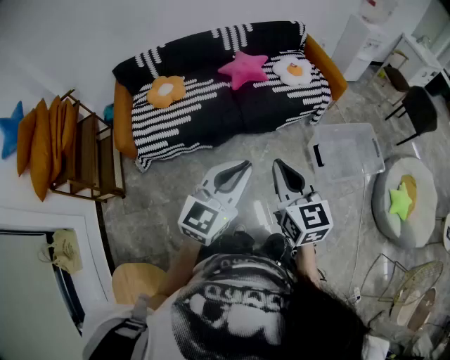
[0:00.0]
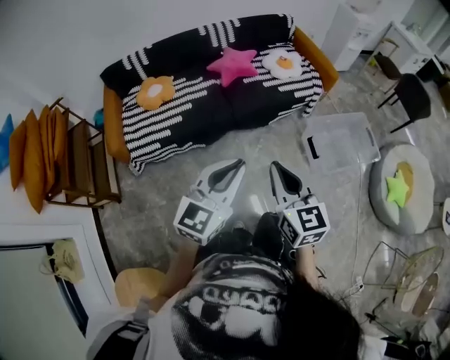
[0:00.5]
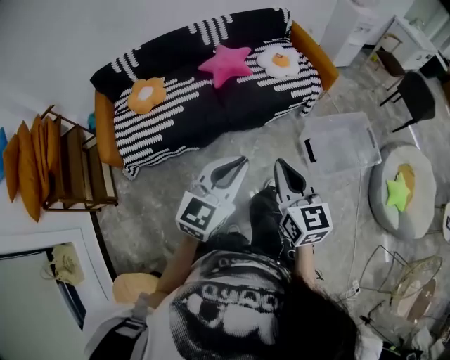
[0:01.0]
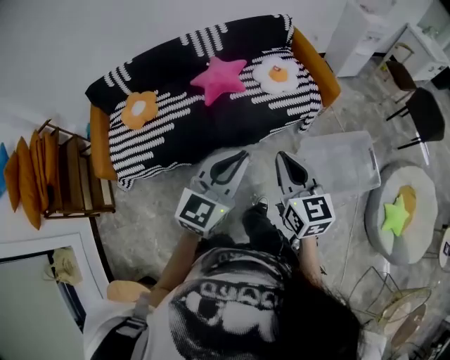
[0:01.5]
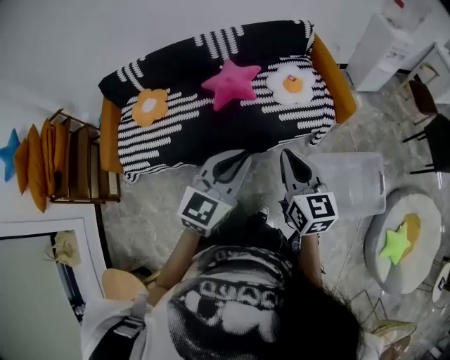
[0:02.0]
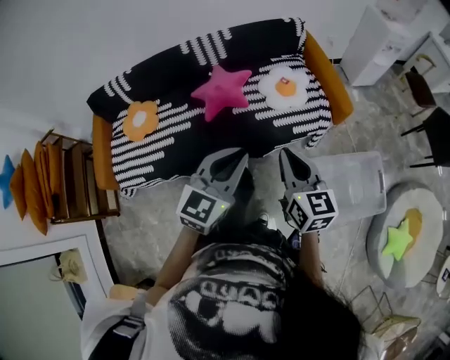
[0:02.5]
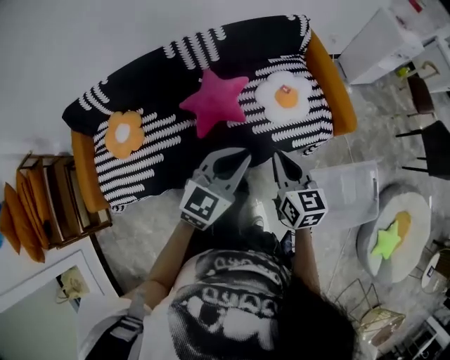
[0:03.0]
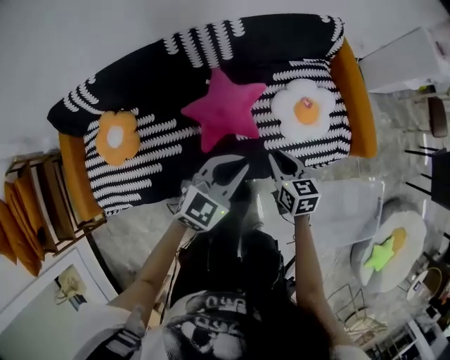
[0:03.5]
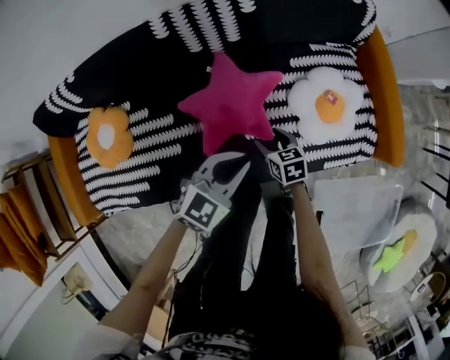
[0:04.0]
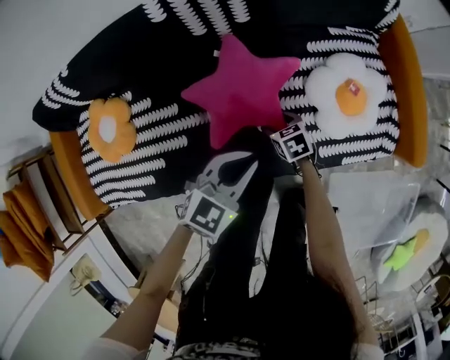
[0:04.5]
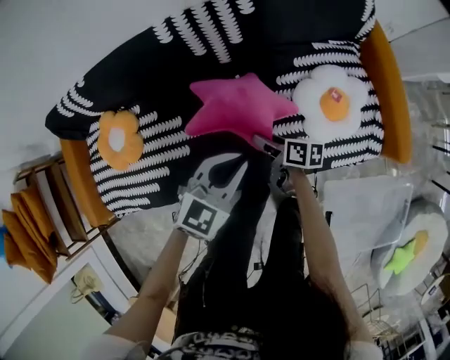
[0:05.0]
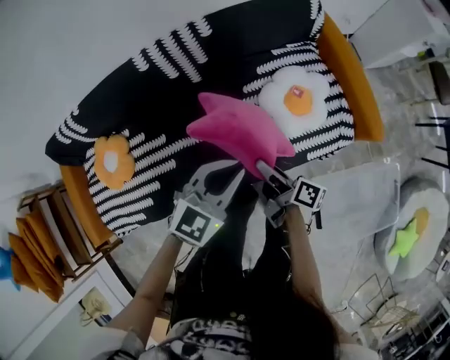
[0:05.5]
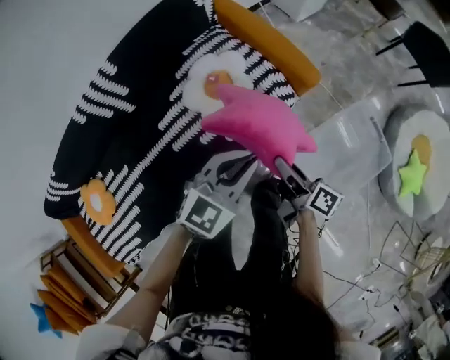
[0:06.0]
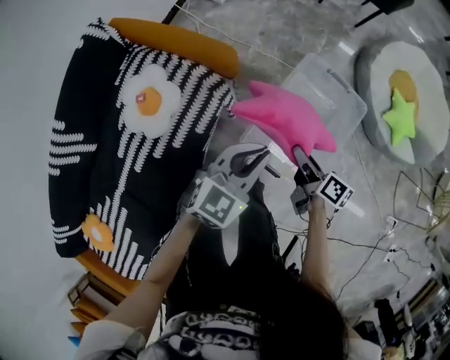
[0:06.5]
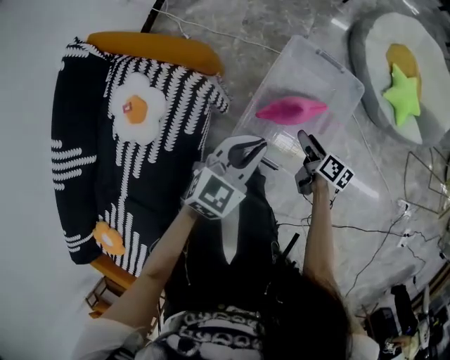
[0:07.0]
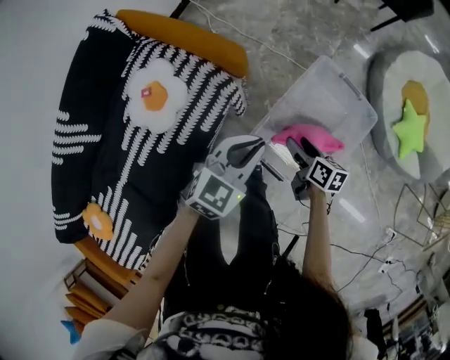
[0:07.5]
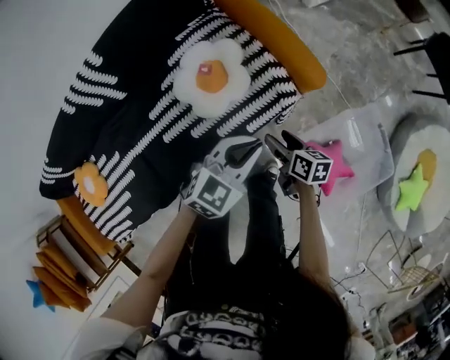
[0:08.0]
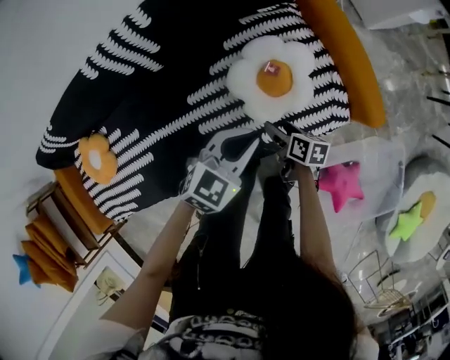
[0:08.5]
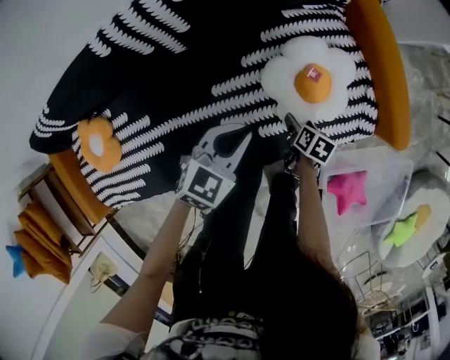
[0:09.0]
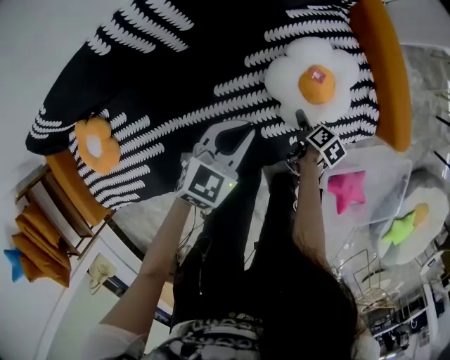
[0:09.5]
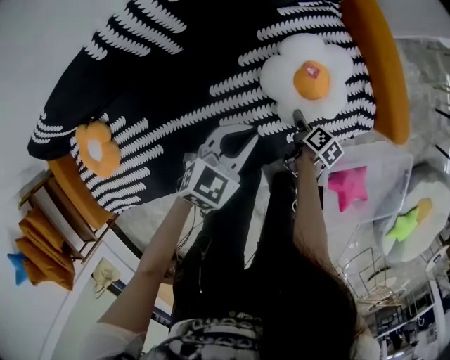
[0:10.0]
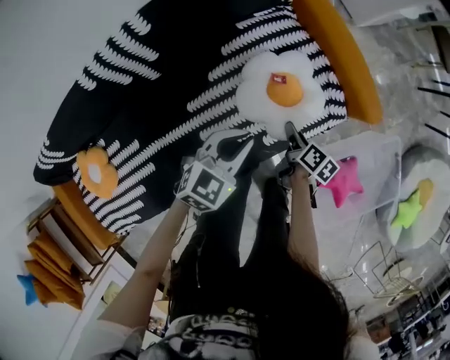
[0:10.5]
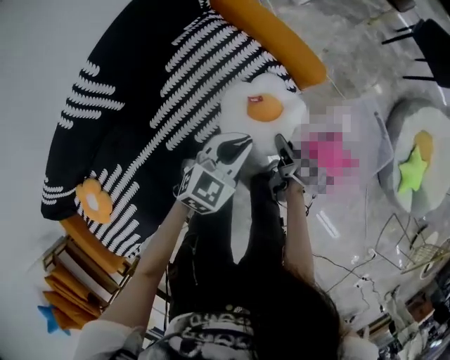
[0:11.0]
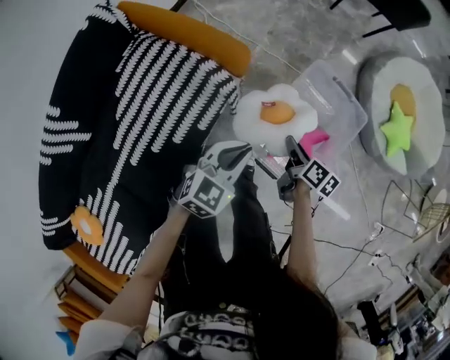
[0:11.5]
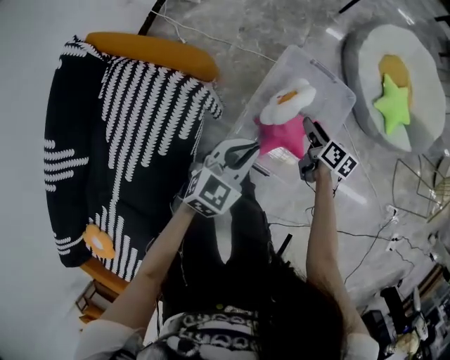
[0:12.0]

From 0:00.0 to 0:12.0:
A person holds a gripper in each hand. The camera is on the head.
From 0:00.0 to 0:02.0: Both grippers travel together forward and to the right, some 40 cm.
From 0:02.0 to 0:04.0: Both grippers are carried forward, roughly 50 cm. Both grippers move downward, some 40 cm. The right gripper angles its fingers downward, by roughly 40 degrees, and opens its fingers, while the left gripper swivels about 30 degrees.
From 0:04.0 to 0:06.0: The left gripper shifts by about 40 cm, and swivels approximately 30 degrees. The right gripper moves roughly 50 cm, and angles its fingers upward, by about 40 degrees.
From 0:06.0 to 0:08.0: Both grippers travel together downward, roughly 15 cm. The right gripper rotates some 30 degrees.
From 0:08.0 to 0:10.0: The left gripper heads to the left, covering roughly 30 cm; the right gripper travels to the left and downward by some 25 cm, and turns by some 30 degrees.
From 0:10.0 to 0:12.0: The pair of grippers is taken roughly 60 cm. The right gripper changes its angle by about 40 degrees; the left gripper turns by approximately 40 degrees.

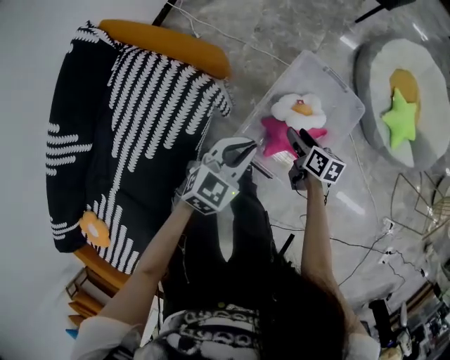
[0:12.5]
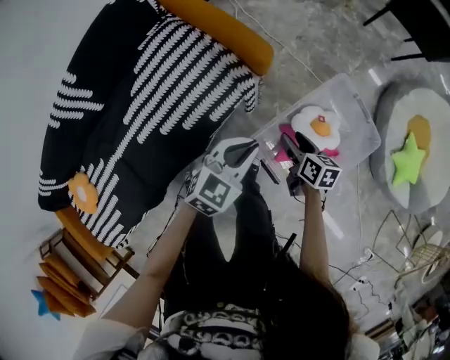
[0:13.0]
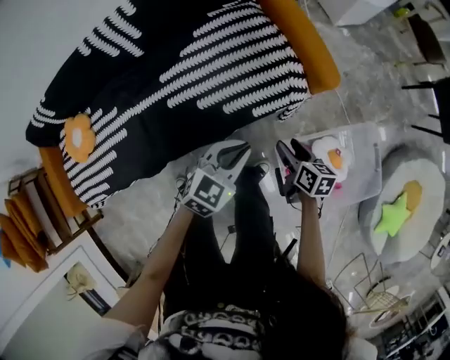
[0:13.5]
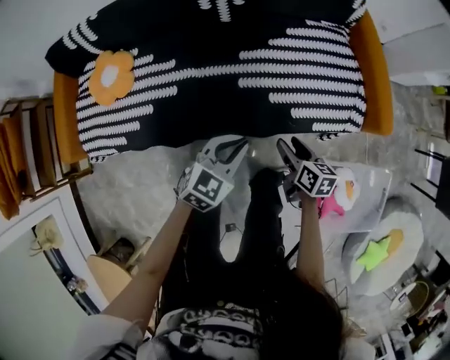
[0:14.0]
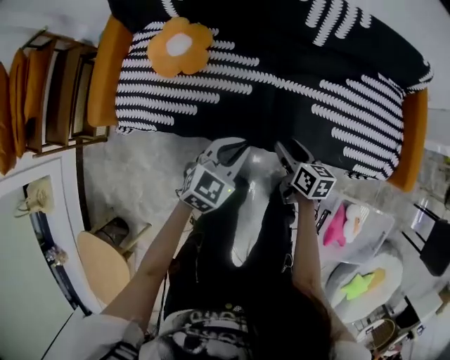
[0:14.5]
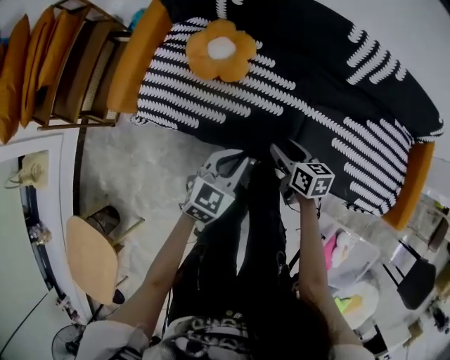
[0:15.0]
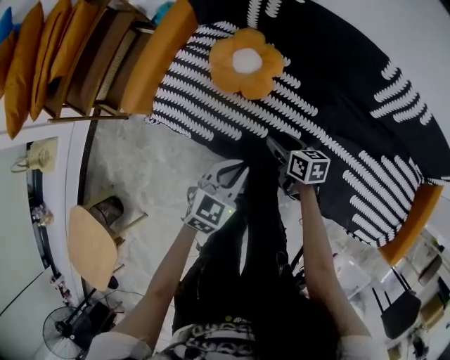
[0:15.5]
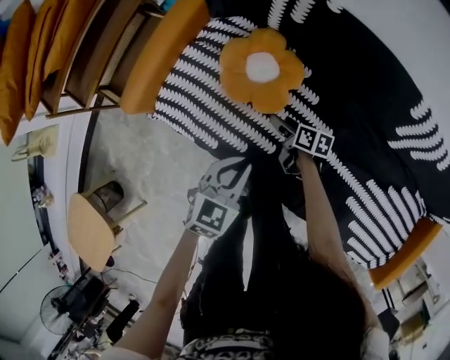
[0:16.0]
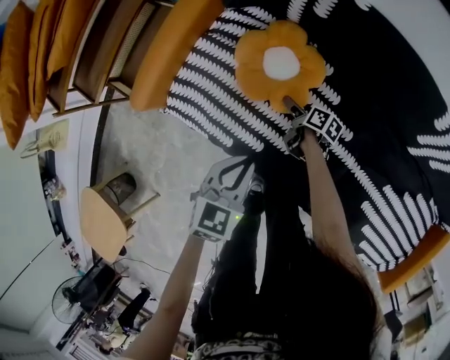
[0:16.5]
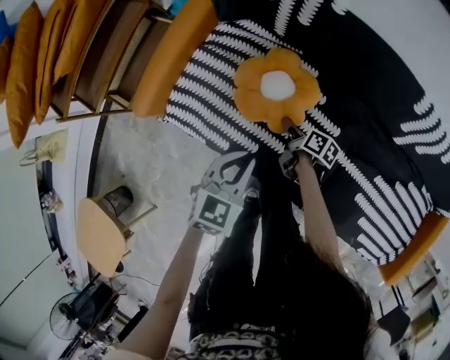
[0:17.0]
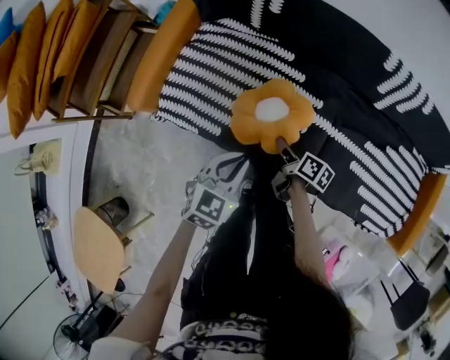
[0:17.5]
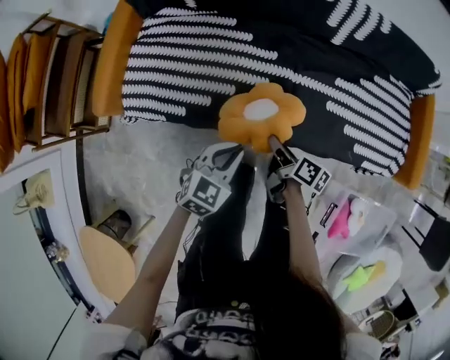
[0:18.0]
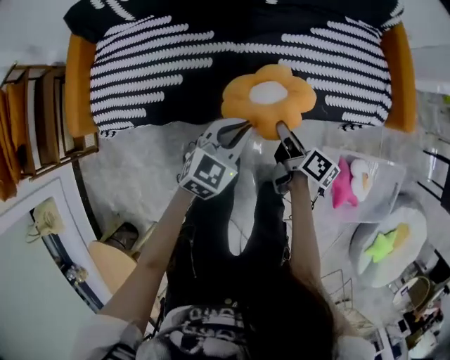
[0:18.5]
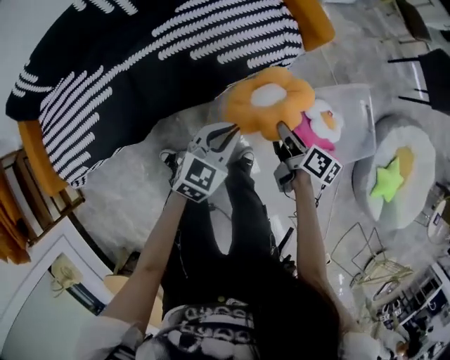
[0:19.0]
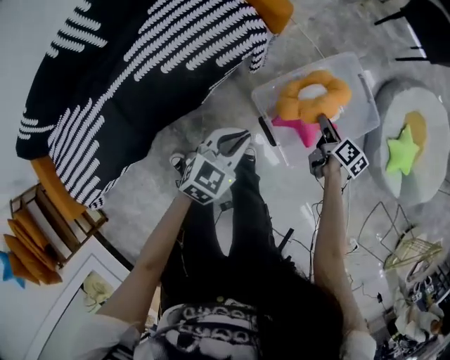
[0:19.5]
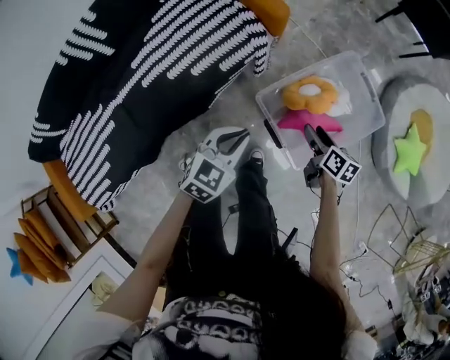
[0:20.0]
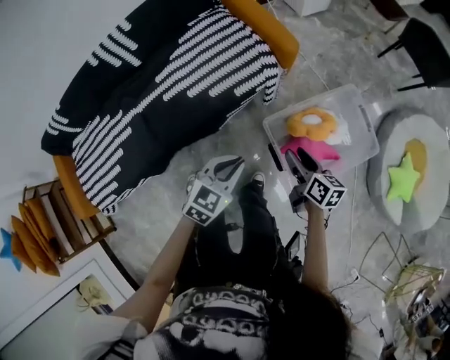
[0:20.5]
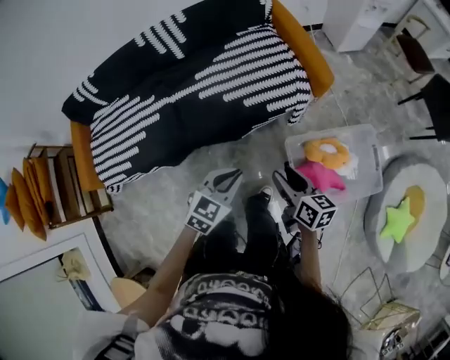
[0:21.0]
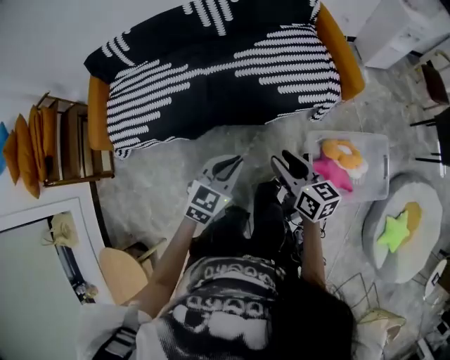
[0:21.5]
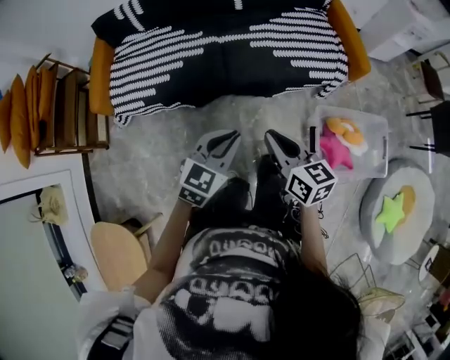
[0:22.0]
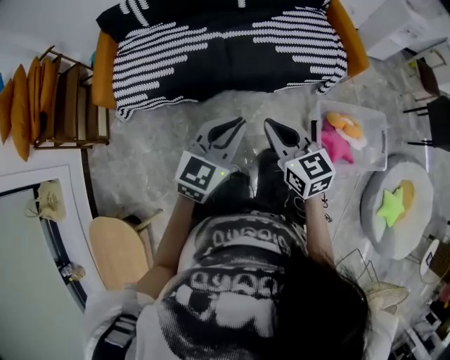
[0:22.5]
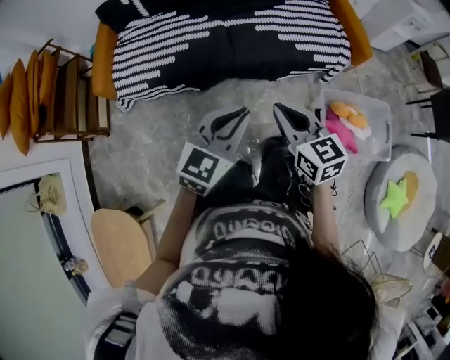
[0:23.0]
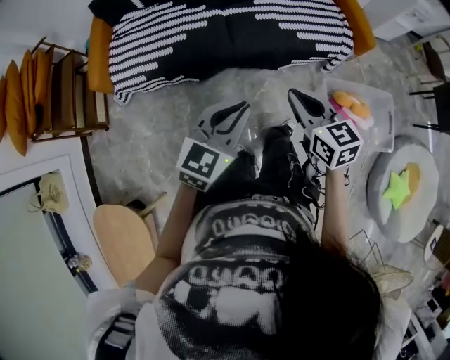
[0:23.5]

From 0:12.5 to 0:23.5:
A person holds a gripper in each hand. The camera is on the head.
From 0:12.5 to 0:14.5: The pair of grippers is taken about 80 cm. The left gripper rotates roughly 70 degrees. The right gripper rotates approximately 80 degrees.
From 0:14.5 to 0:16.0: The left gripper changes place by roughly 30 cm, and rotates approximately 30 degrees; the right gripper changes place by about 40 cm, and swivels some 30 degrees.
From 0:16.0 to 0:18.0: The left gripper changes place by roughly 25 cm, and swivels about 30 degrees. The right gripper moves about 40 cm, changes its angle by approximately 40 degrees, and closes up.
From 0:18.0 to 0:20.0: Both grippers are carried roughly 70 cm. The right gripper changes its angle by roughly 50 degrees, and opens, while the left gripper rotates approximately 50 degrees.
From 0:20.0 to 0:21.5: The left gripper shifts by about 35 cm, and changes its angle by roughly 40 degrees, while the right gripper shifts by approximately 50 cm, and changes its angle by approximately 50 degrees.
From 0:21.5 to 0:23.5: The right gripper moves to the left and backward, roughly 20 cm, turns by roughly 30 degrees, and closes its fingers; the left gripper travels to the left, backward and upward by roughly 20 cm.

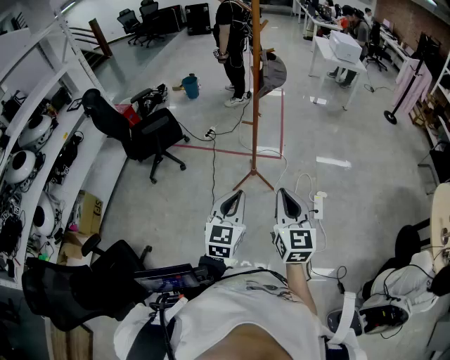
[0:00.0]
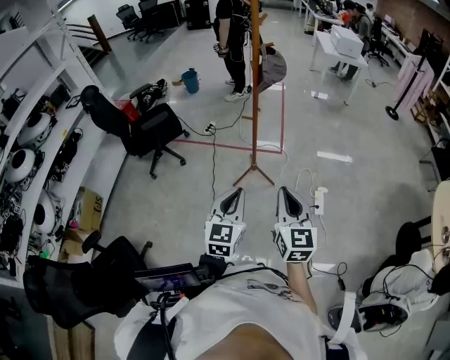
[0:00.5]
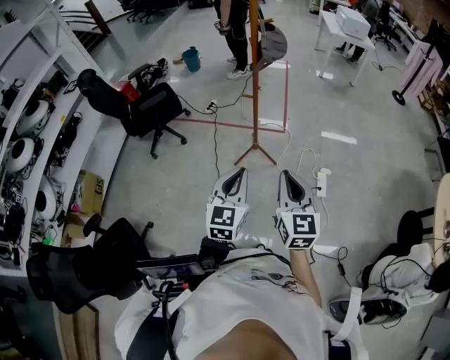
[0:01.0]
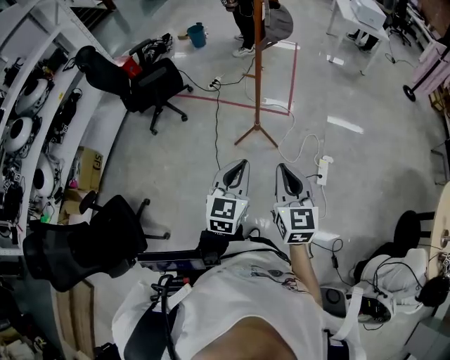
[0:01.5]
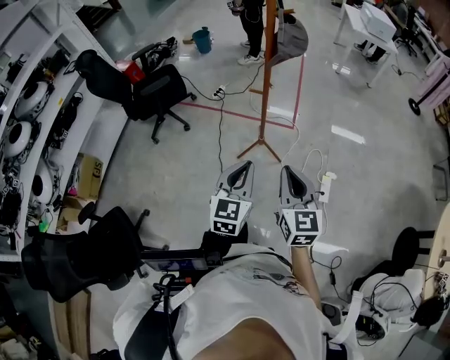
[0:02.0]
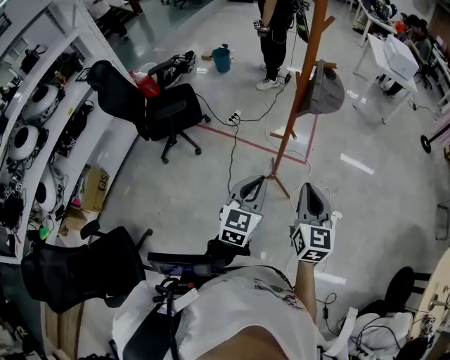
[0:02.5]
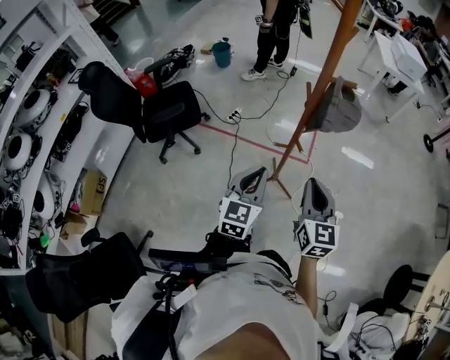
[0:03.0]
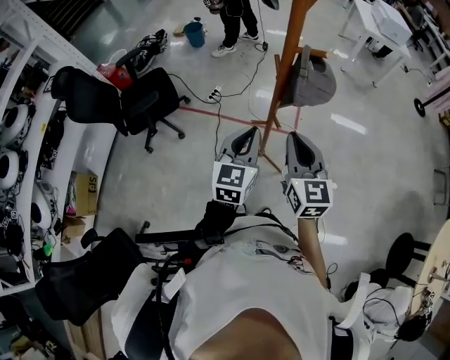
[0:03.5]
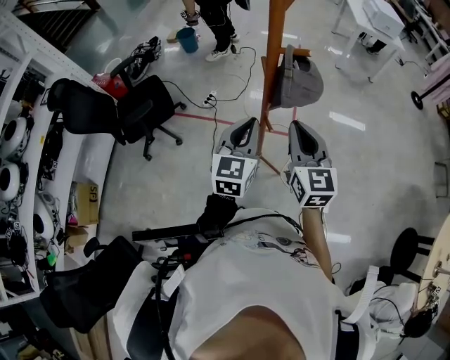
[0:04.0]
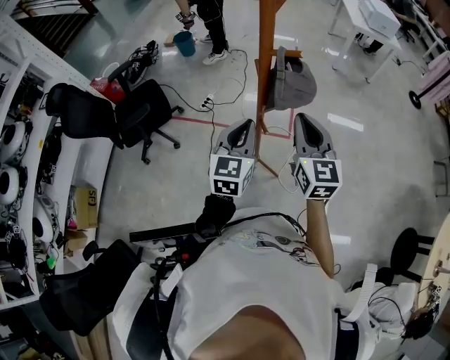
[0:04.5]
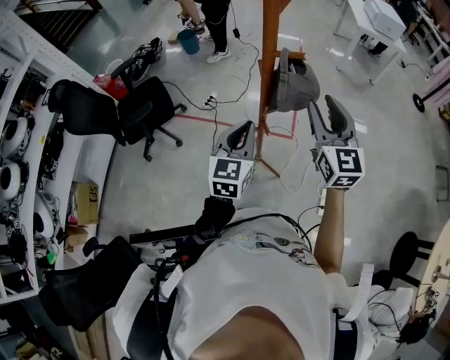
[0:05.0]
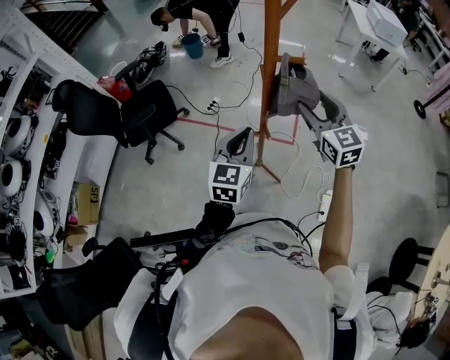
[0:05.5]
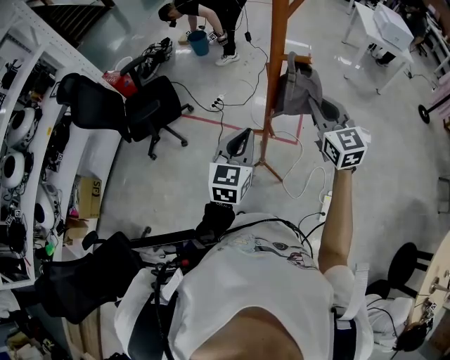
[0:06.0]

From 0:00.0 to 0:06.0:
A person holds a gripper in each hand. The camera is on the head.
From 0:00.0 to 0:02.0: The left gripper heads forward, covering some 10 cm, while the right gripper travels forward and downward by some 10 cm.
From 0:02.0 to 0:04.0: The two grippers go approximately 35 cm forward.
From 0:04.0 to 0:06.0: The right gripper heads forward, covering about 10 cm, and opens, then closes again.
